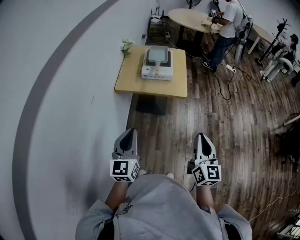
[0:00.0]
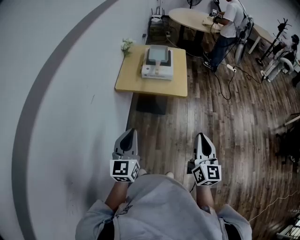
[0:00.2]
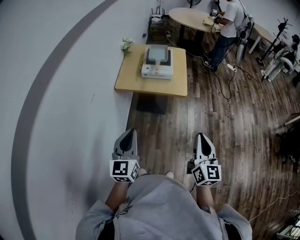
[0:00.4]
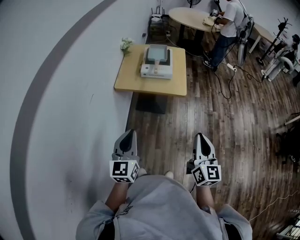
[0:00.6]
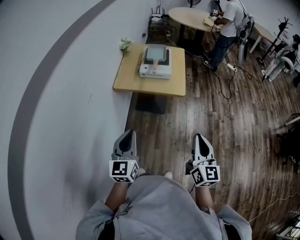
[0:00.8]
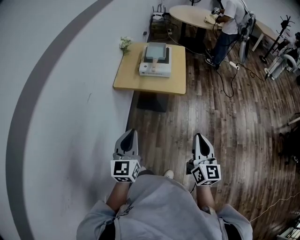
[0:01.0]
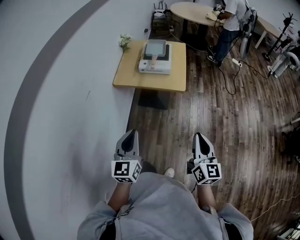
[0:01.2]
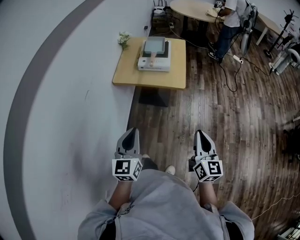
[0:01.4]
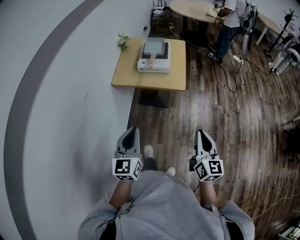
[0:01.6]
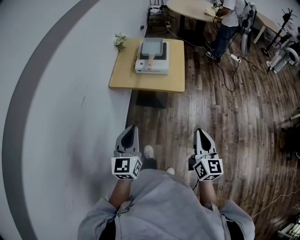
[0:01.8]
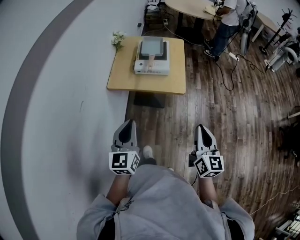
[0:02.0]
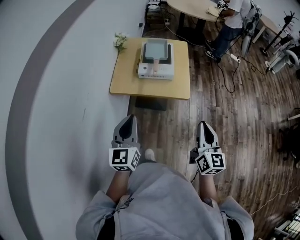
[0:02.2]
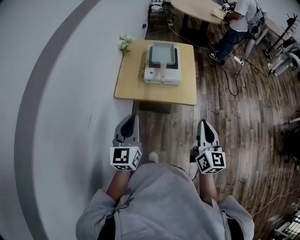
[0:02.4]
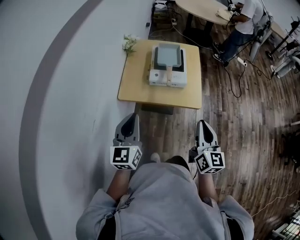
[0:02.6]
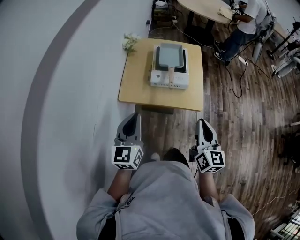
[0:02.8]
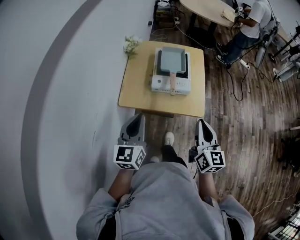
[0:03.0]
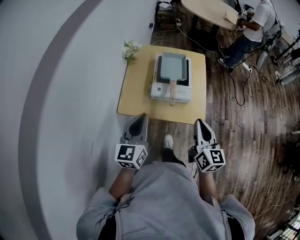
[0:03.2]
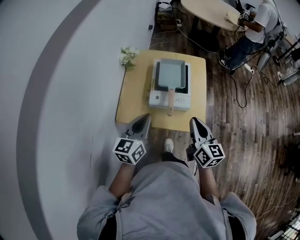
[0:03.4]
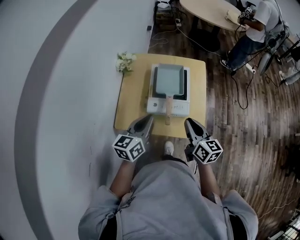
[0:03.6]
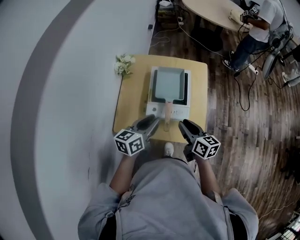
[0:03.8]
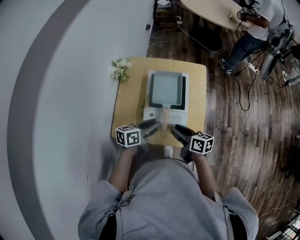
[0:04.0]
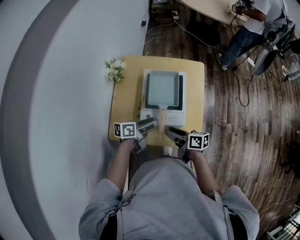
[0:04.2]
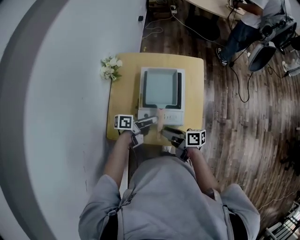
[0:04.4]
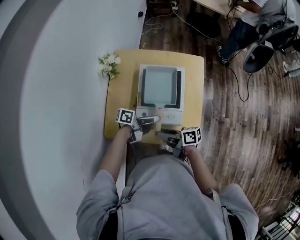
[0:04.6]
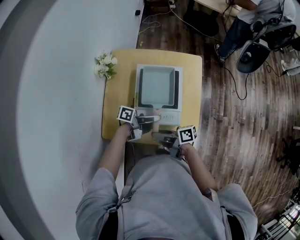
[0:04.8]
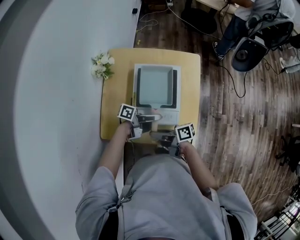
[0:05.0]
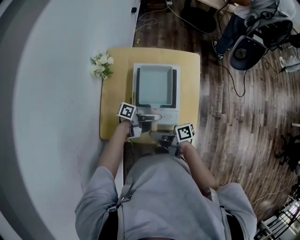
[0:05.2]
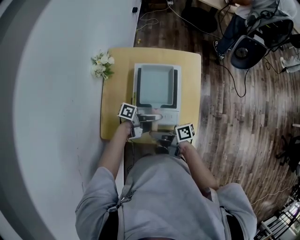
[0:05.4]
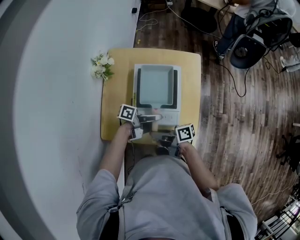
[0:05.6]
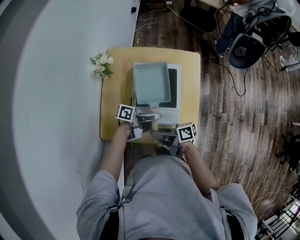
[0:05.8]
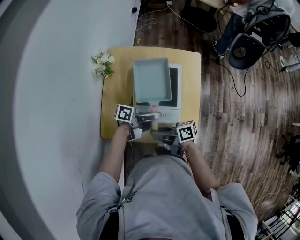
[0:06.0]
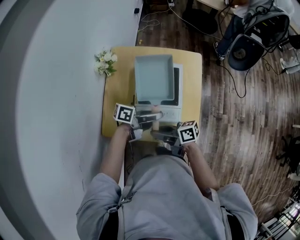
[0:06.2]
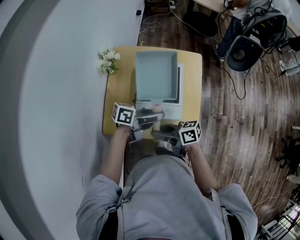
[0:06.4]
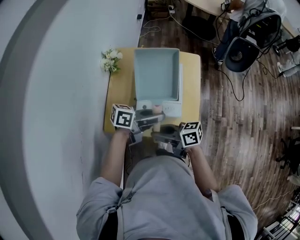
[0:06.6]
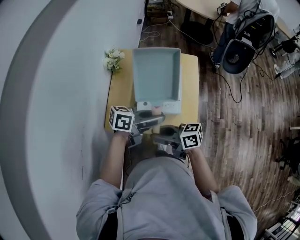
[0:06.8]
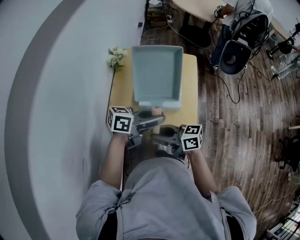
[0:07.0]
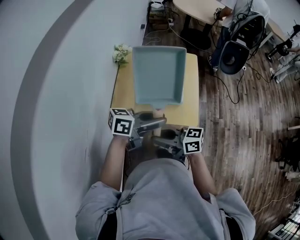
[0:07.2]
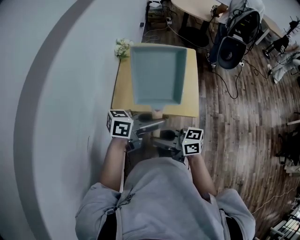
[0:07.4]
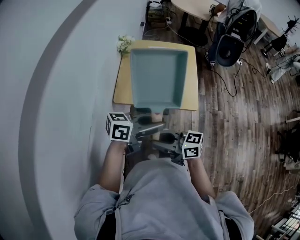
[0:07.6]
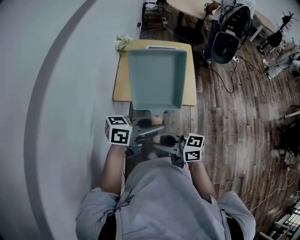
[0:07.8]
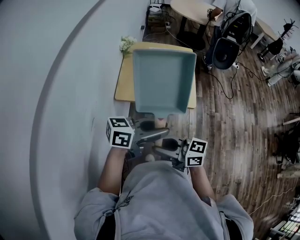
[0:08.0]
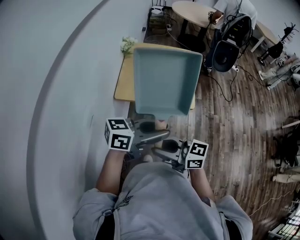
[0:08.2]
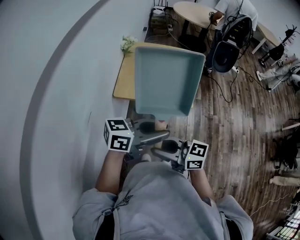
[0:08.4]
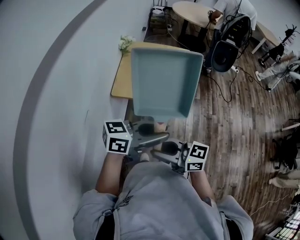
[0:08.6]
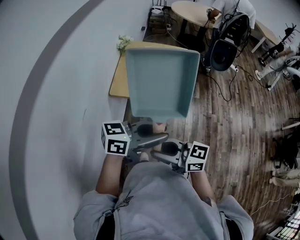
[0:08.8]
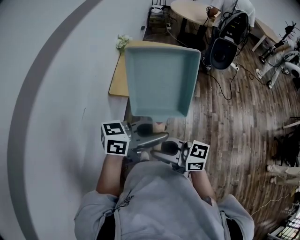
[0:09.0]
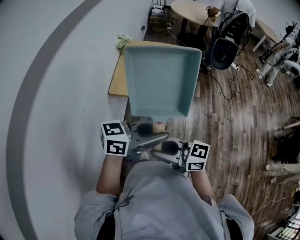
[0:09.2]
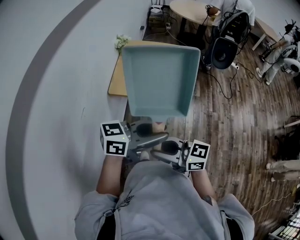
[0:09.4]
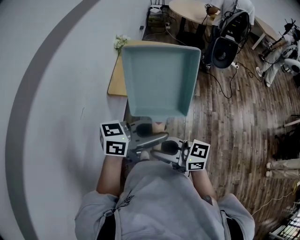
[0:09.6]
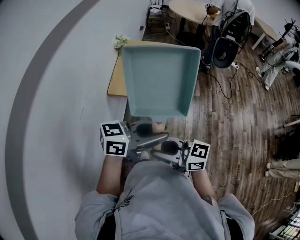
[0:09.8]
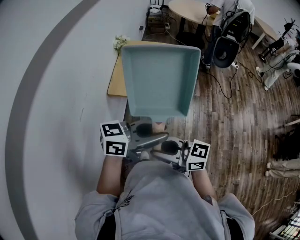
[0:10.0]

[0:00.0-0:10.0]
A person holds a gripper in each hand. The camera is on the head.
0:00.0 to 0:01.4: The two grippers go about 5 cm to the right.
0:01.4 to 0:02.8: Both grippers travel together forward and to the left, some 30 cm.
0:02.8 to 0:04.2: The left gripper moves forward, downward and to the right, some 35 cm, turns by some 70 degrees, and opens its fingers, while the right gripper moves forward and downward, about 30 cm, swivels about 70 degrees, and opens up.
0:04.2 to 0:05.8: The left gripper moves about 5 cm, and changes its angle by about 30 degrees. Meanwhile the right gripper swivels approximately 20 degrees.
0:05.8 to 0:07.2: The left gripper changes place by about 30 cm, and rolls clockwise, seen from behind, by some 40 degrees, while the right gripper shifts by approximately 25 cm, and swivels approximately 40 degrees.
0:07.2 to 0:08.6: The left gripper ends up approximately 25 cm from where it was. The right gripper moves some 25 cm.
0:08.6 to 0:10.0: The grippers make only small movements.

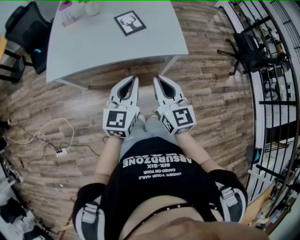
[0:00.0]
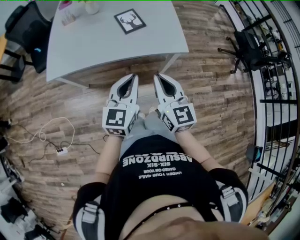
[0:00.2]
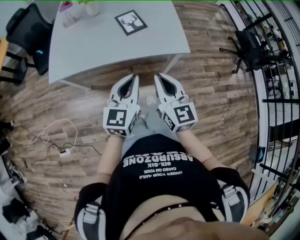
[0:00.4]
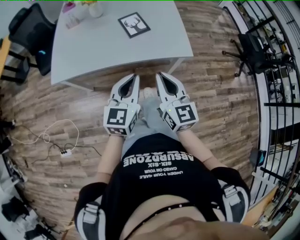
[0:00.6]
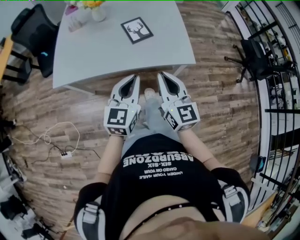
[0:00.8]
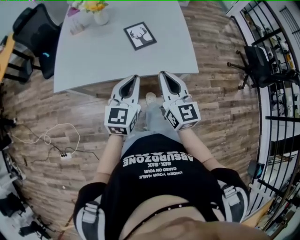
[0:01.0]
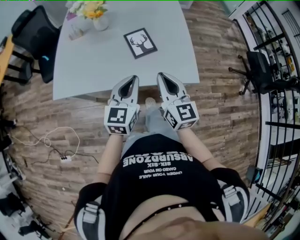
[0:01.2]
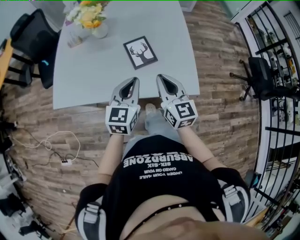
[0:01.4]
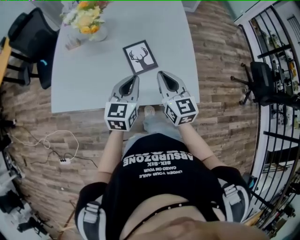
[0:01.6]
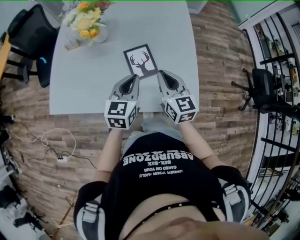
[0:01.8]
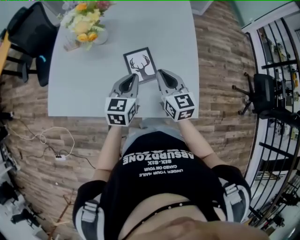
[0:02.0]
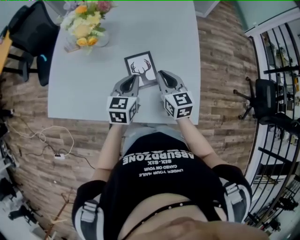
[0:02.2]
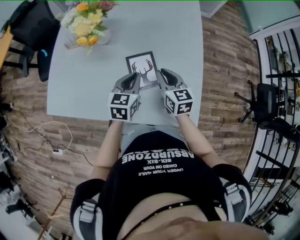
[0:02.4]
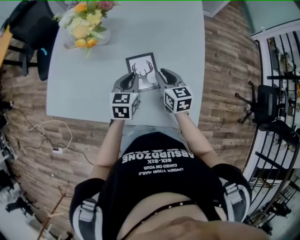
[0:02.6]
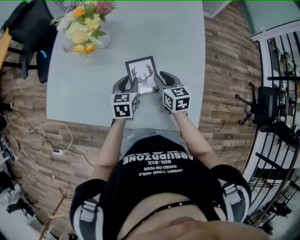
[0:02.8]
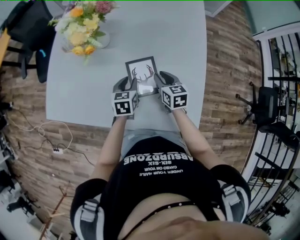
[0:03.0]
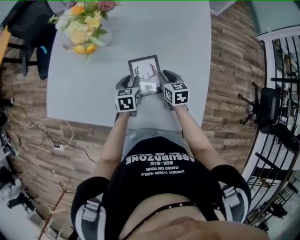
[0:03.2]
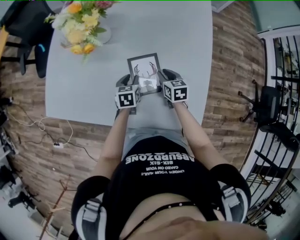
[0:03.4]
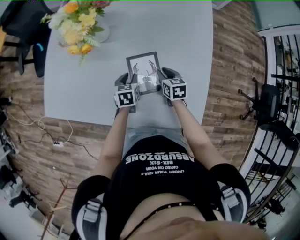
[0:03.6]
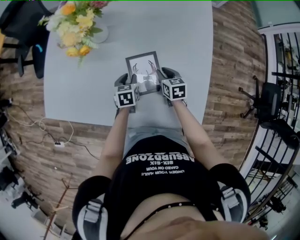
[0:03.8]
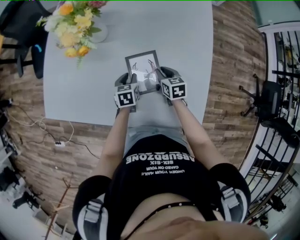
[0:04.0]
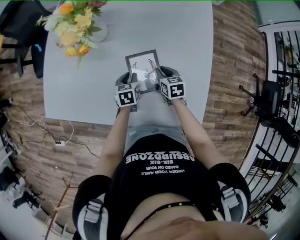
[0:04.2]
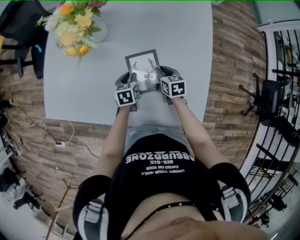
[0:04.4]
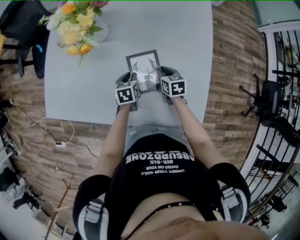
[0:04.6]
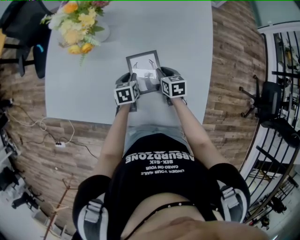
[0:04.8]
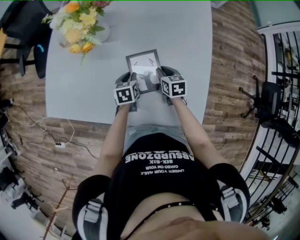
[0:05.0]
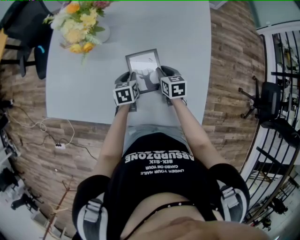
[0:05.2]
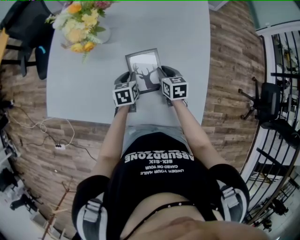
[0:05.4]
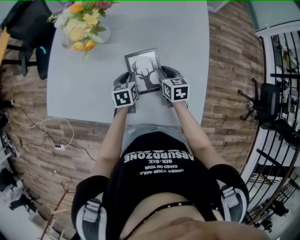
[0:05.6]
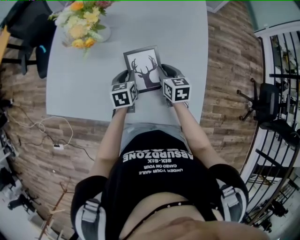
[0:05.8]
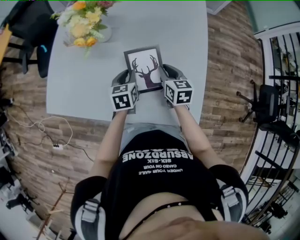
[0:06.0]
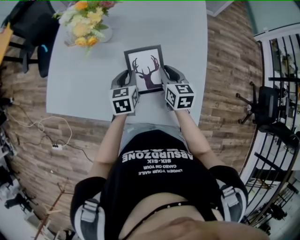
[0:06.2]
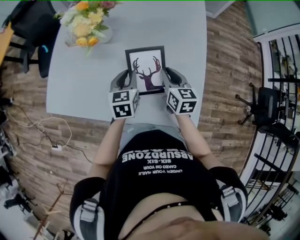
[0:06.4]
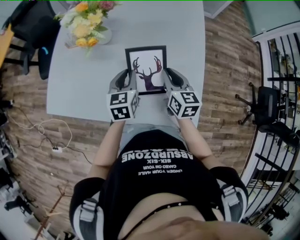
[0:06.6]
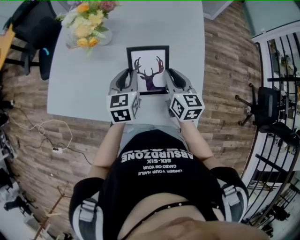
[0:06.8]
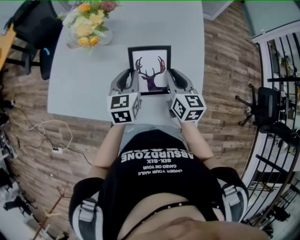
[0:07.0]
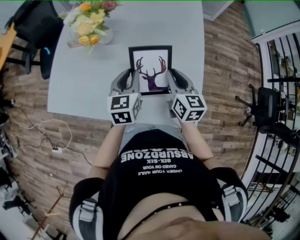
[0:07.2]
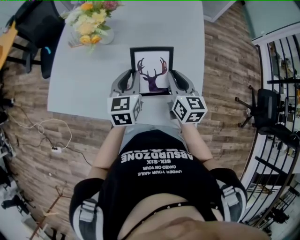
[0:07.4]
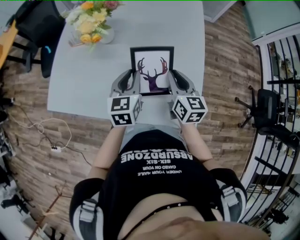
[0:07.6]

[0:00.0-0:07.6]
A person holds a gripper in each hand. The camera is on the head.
0:00.0 to 0:01.6: The two grippers go approximately 30 cm forward.
0:01.6 to 0:03.0: The left gripper travels downward and forward by some 25 cm, swivels approximately 30 degrees, and opens. Meanwhile the right gripper goes approximately 25 cm forward and downward, rotates some 30 degrees, and opens.
0:03.0 to 0:04.6: The two grippers go some 10 cm downward.
0:04.6 to 0:06.0: Both grippers travel together upward, roughly 10 cm.
0:06.0 to 0:07.6: The right gripper shifts approximately 10 cm upward and backward, while the left gripper is displaced upward by roughly 15 cm.

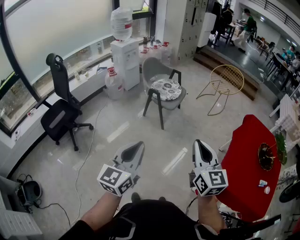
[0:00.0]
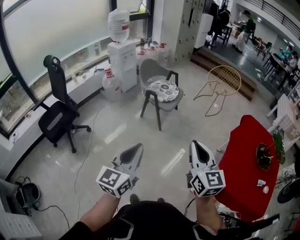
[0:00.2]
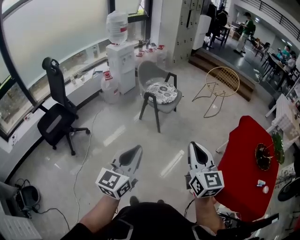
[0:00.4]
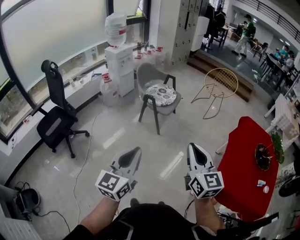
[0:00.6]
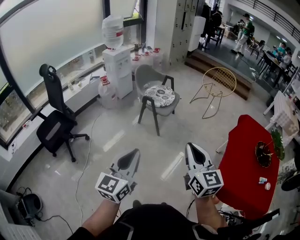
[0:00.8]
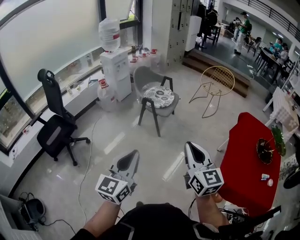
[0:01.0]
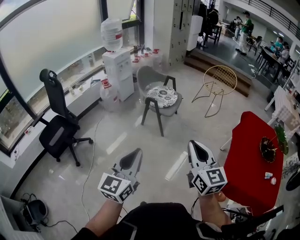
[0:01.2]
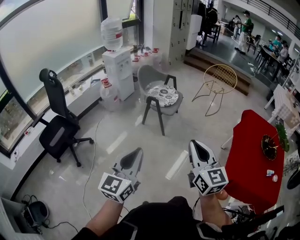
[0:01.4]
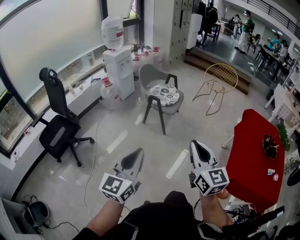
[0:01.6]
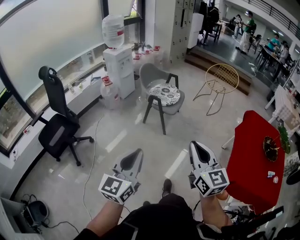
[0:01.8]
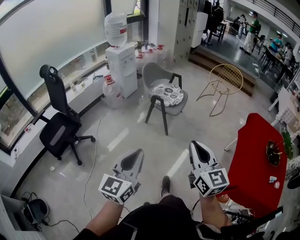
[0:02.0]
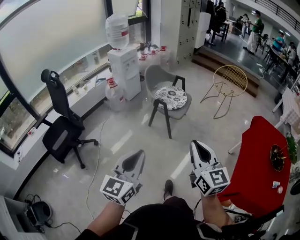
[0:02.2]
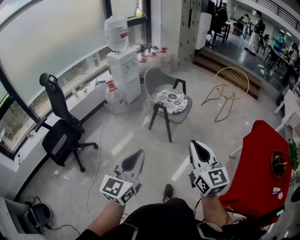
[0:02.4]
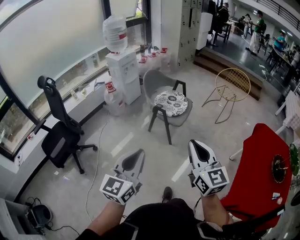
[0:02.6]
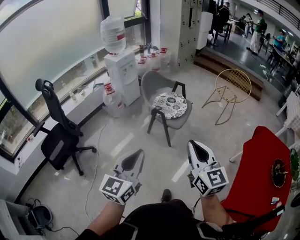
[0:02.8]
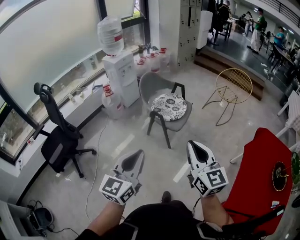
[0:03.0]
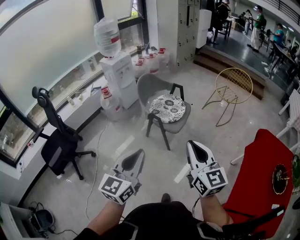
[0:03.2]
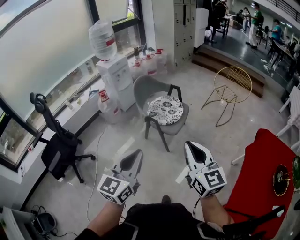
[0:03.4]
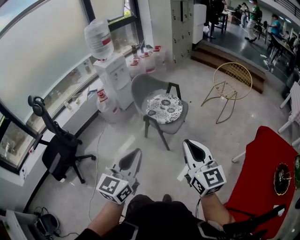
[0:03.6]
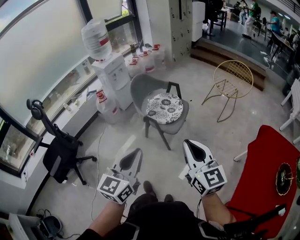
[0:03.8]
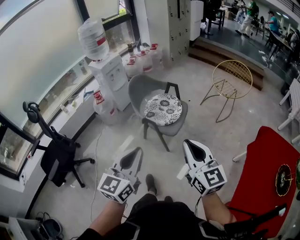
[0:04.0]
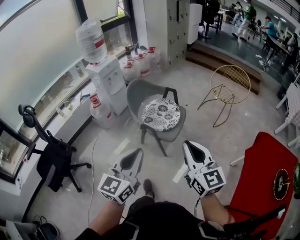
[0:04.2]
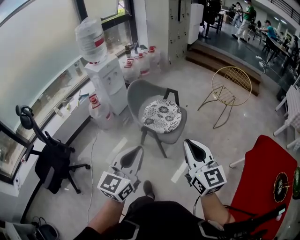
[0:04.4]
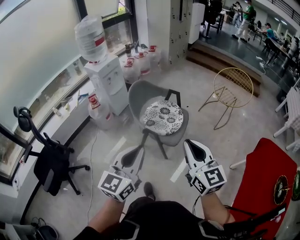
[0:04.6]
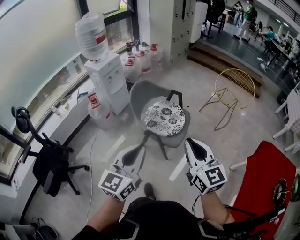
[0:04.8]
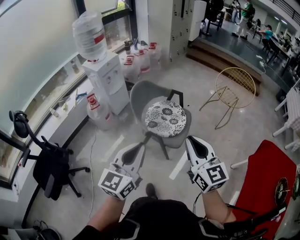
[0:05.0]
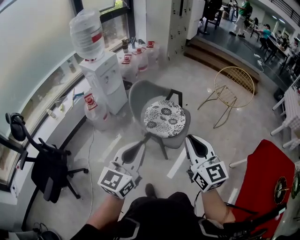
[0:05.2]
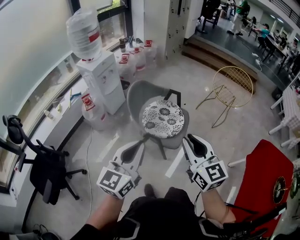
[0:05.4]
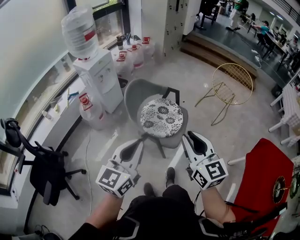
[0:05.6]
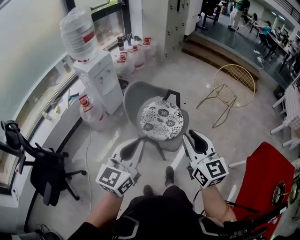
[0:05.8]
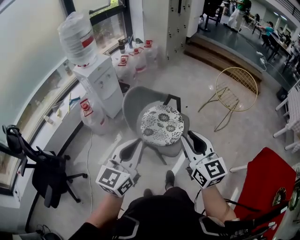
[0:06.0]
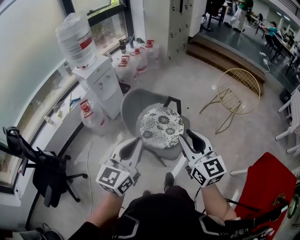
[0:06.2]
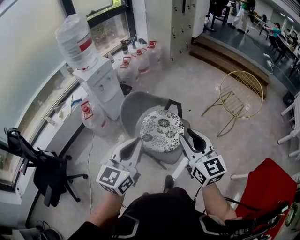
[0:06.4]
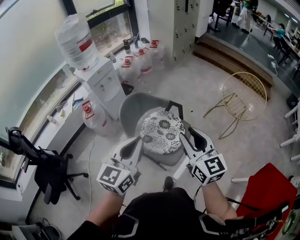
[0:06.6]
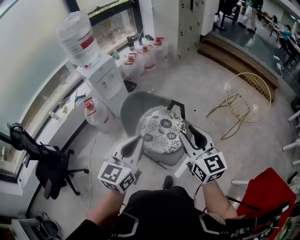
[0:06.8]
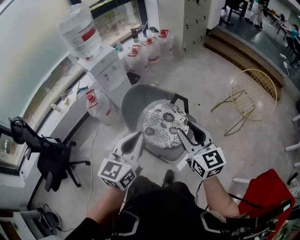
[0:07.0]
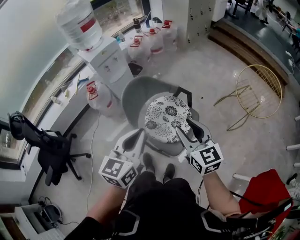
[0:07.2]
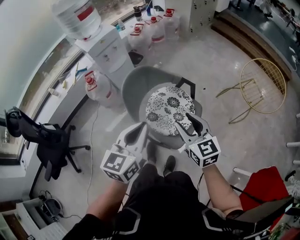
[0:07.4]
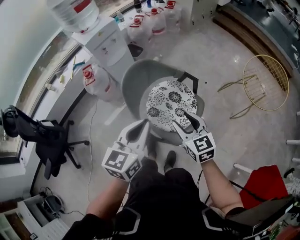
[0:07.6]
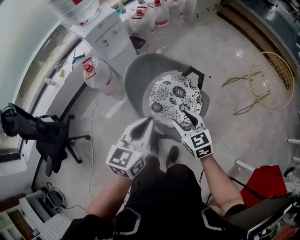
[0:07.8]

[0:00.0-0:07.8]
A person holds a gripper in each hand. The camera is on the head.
0:00.0 to 0:01.6: Both grippers travel together to the left, some 10 cm.
0:01.6 to 0:03.2: Both grippers move forward, roughly 25 cm.
0:03.2 to 0:04.6: Both grippers move forward, some 20 cm.
0:04.6 to 0:06.2: Both grippers move forward, about 20 cm. The right gripper opens its fingers.
0:06.2 to 0:07.8: The left gripper shifts some 20 cm downward and forward, and turns by about 20 degrees. Meanwhile the right gripper is displaced downward and forward by some 30 cm, turns by some 30 degrees, and opens its fingers.
